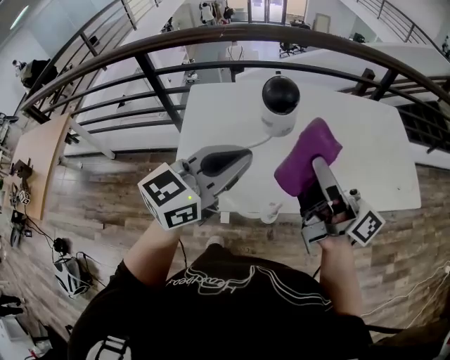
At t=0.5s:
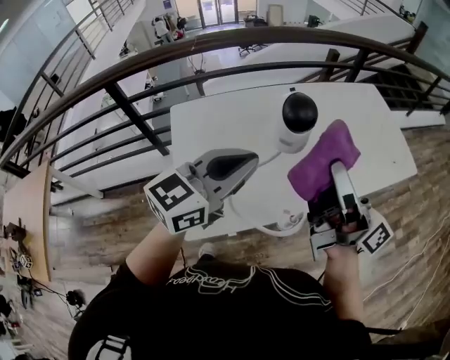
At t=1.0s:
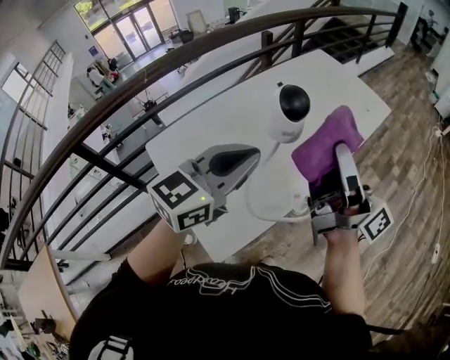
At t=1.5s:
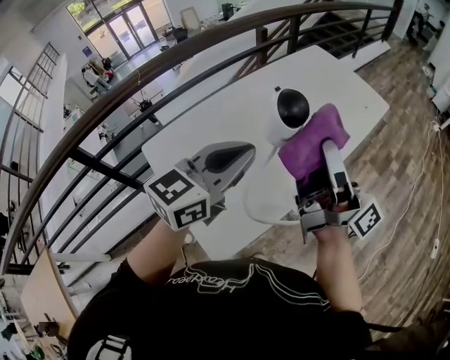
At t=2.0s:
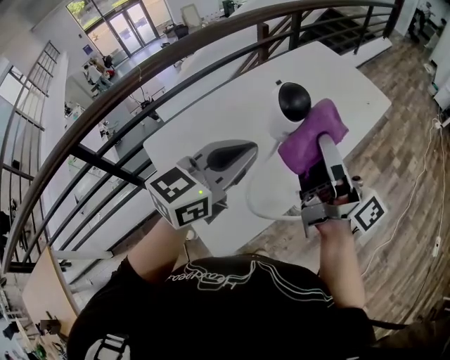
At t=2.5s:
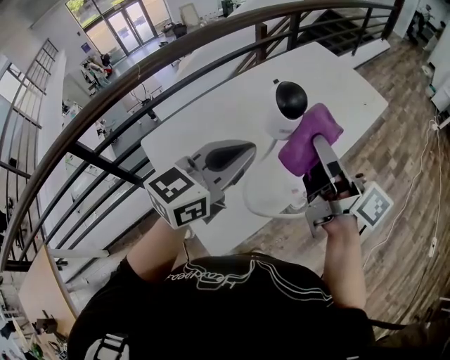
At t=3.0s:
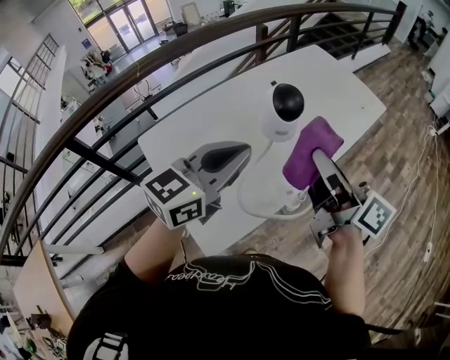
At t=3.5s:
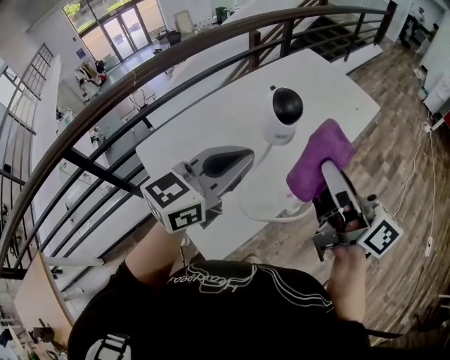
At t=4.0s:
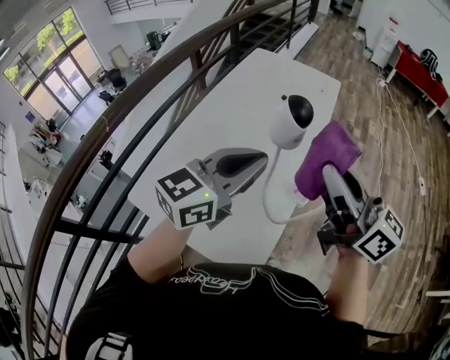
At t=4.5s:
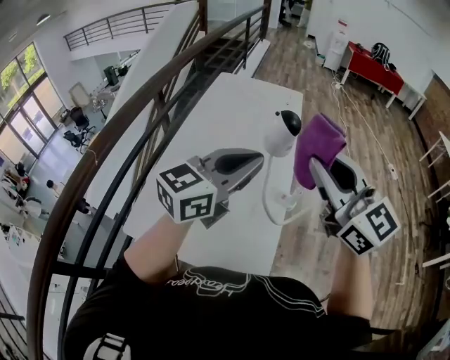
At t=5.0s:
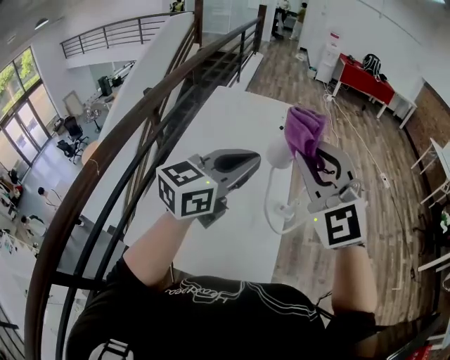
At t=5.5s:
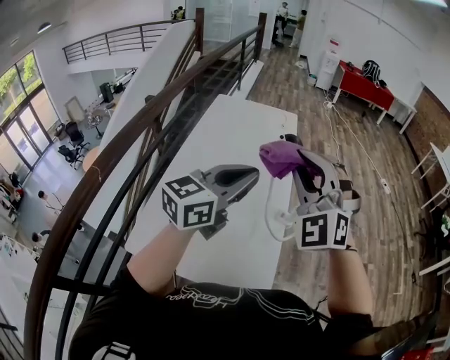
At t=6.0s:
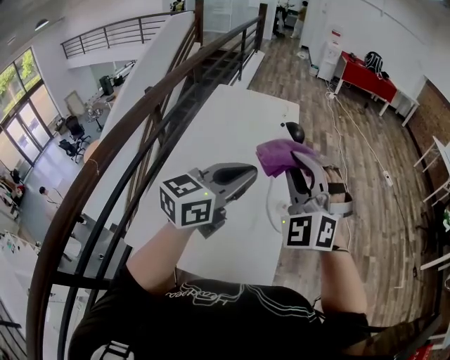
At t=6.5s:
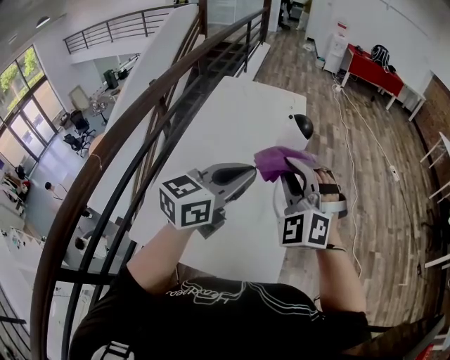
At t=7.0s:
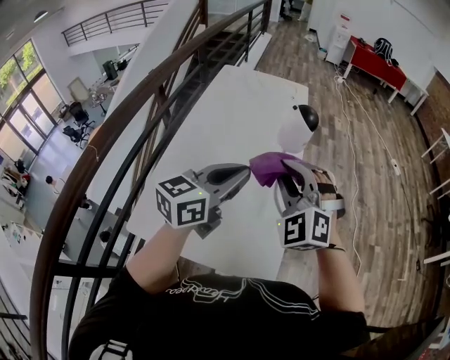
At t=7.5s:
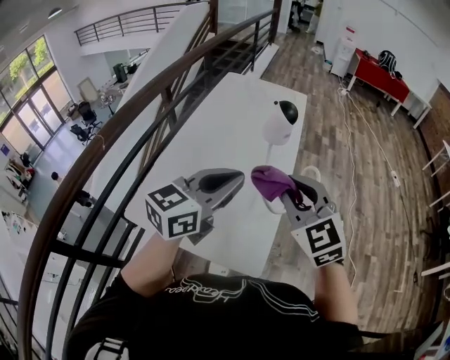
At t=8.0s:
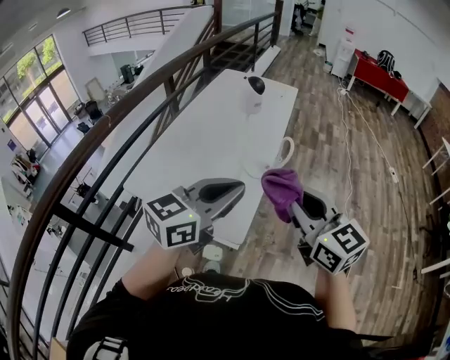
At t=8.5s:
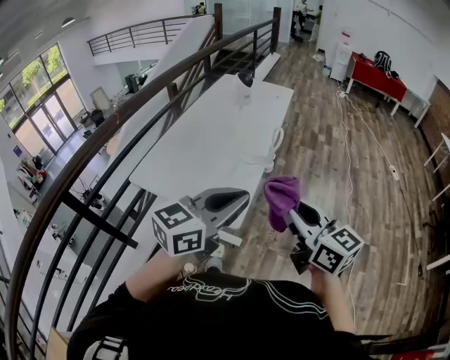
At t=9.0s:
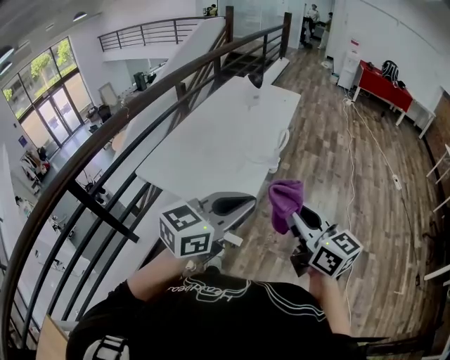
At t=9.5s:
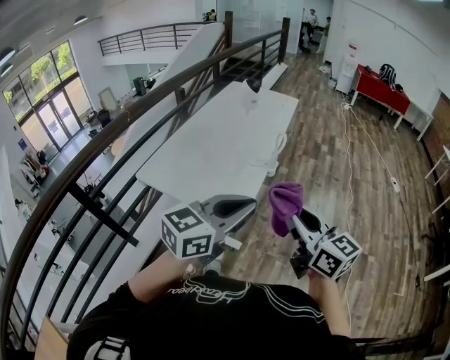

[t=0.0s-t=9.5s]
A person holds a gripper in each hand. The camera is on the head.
t=0.0s to t=2.0s: The left gripper shifts by roughly 10 cm, and rotates approximately 40 degrees, while the right gripper shifts by some 5 cm, and turns by approximately 50 degrees.
t=2.0s to t=4.0s: The right gripper changes place by about 10 cm, and twists approximately 40 degrees counterclockwise, seen from behind. The left gripper turns by about 30 degrees.
t=4.0s to t=5.5s: The left gripper travels to the left by roughly 5 cm. Meanwhile the right gripper heads to the left, covering approximately 10 cm, and rolls counterclockwise, seen from behind, by about 90 degrees.
t=5.5s to t=7.5s: The left gripper travels backward by some 5 cm; the right gripper heads downward, backward and to the right, covering about 15 cm, and swivels roughly 40 degrees.
t=7.5s to t=9.5s: The grippers both shift backward and to the right by some 35 cm. The right gripper twists roughly 40 degrees clockwise, seen from behind.

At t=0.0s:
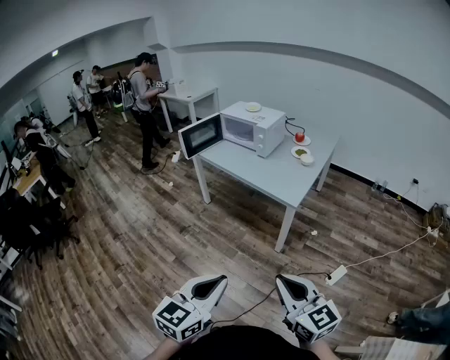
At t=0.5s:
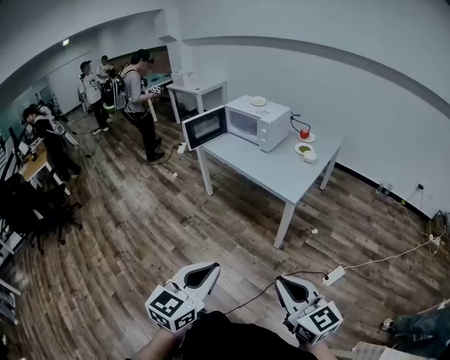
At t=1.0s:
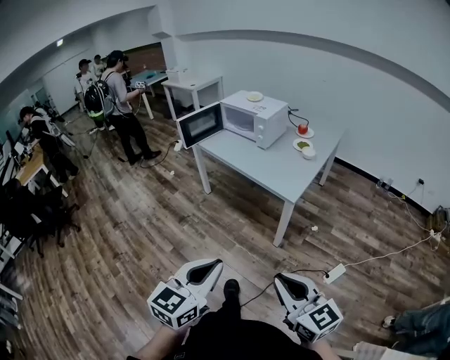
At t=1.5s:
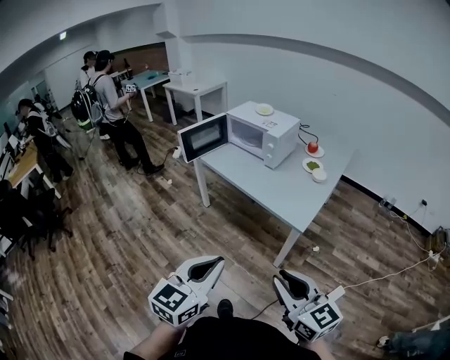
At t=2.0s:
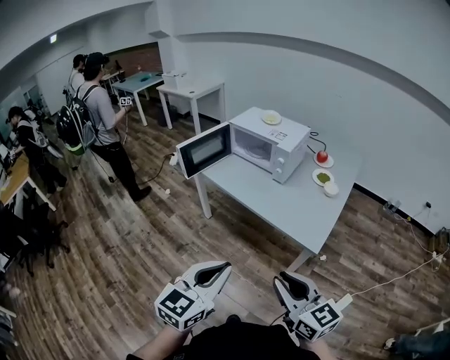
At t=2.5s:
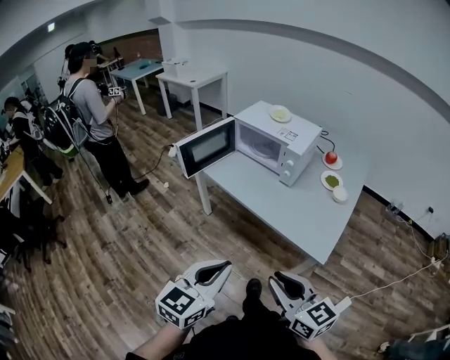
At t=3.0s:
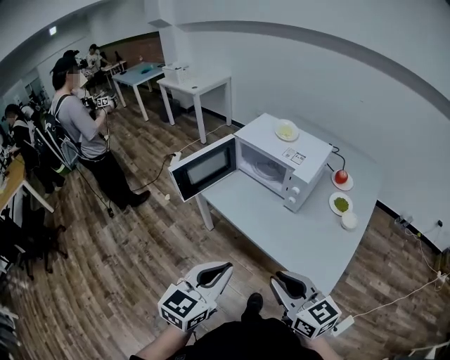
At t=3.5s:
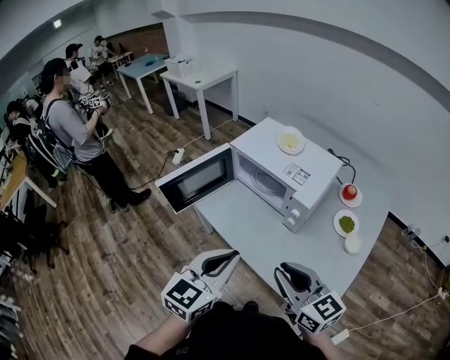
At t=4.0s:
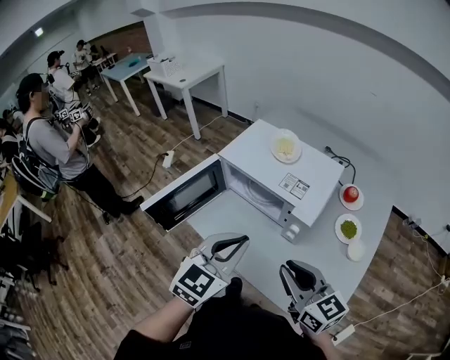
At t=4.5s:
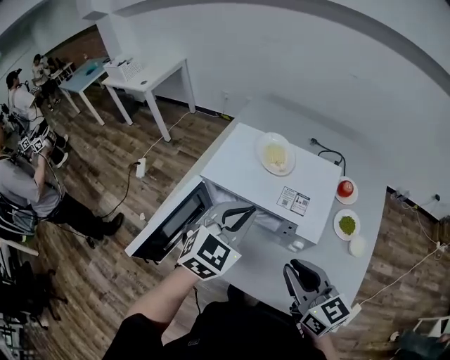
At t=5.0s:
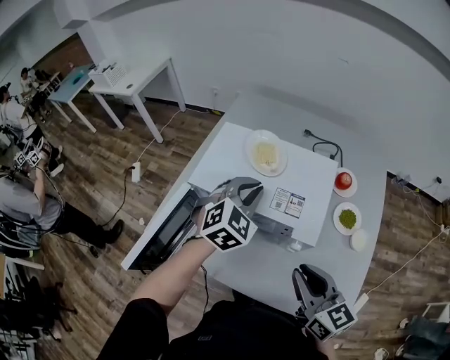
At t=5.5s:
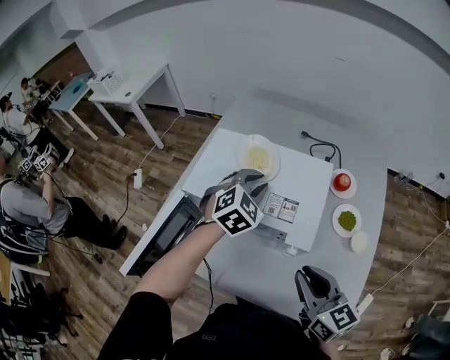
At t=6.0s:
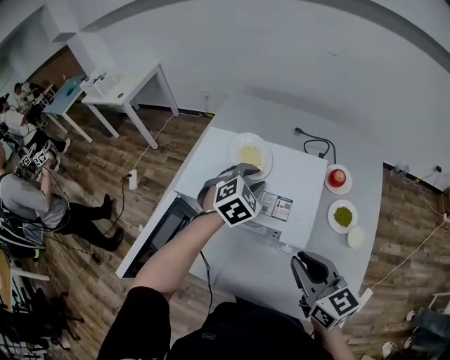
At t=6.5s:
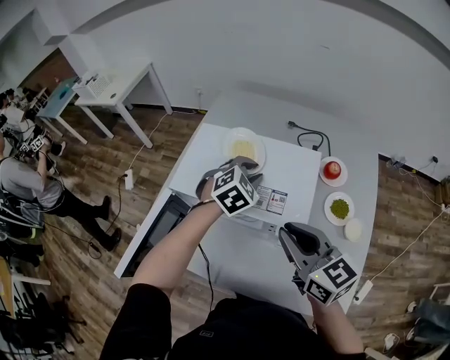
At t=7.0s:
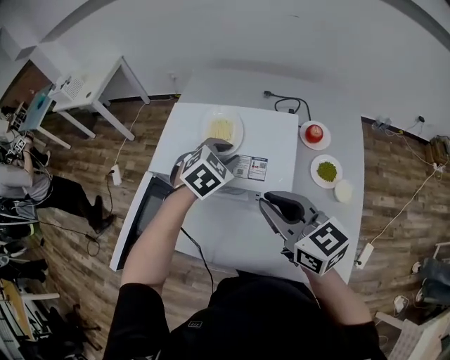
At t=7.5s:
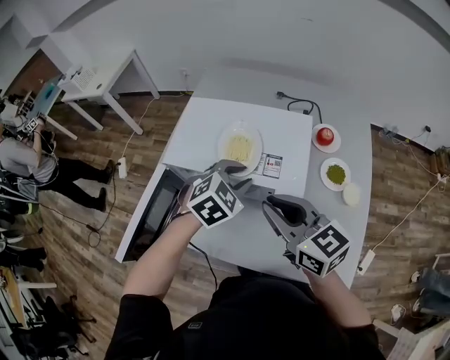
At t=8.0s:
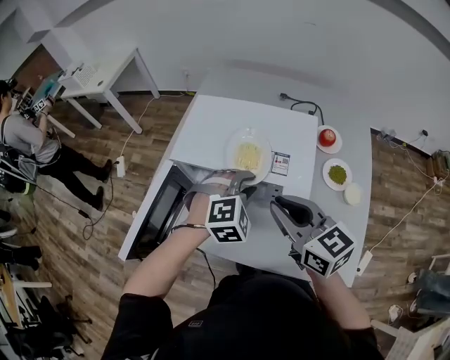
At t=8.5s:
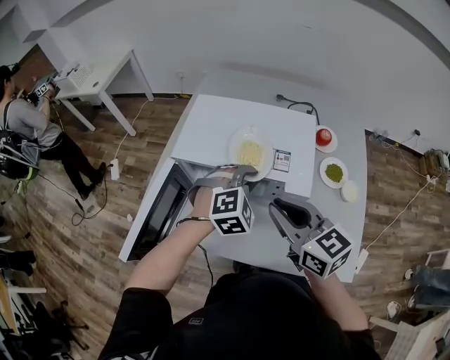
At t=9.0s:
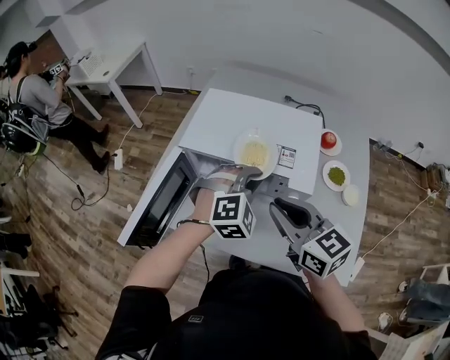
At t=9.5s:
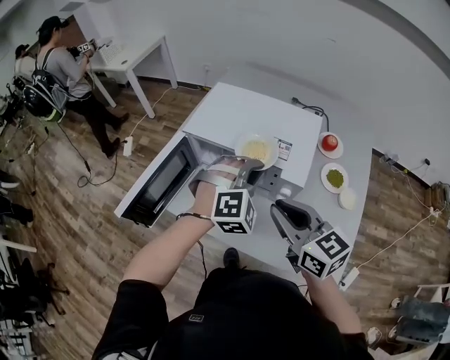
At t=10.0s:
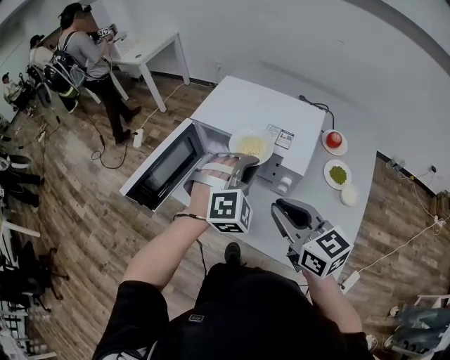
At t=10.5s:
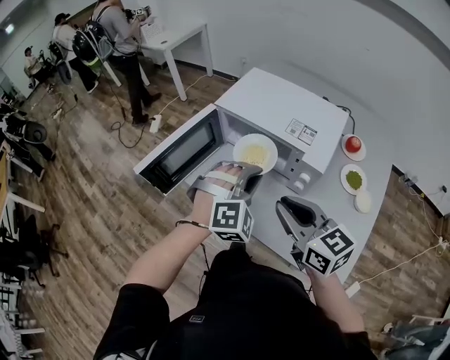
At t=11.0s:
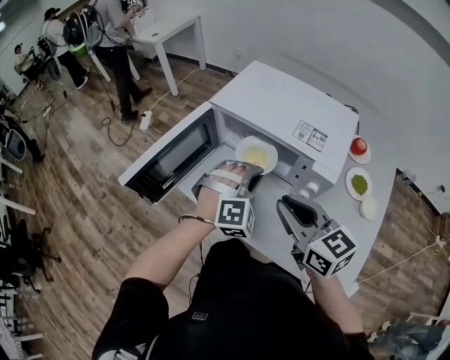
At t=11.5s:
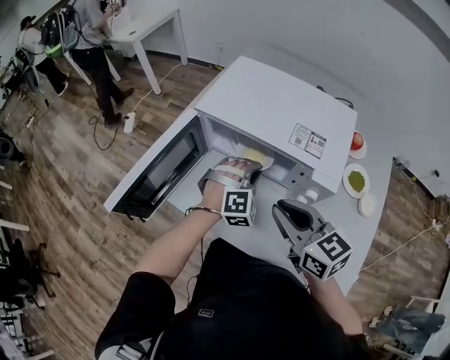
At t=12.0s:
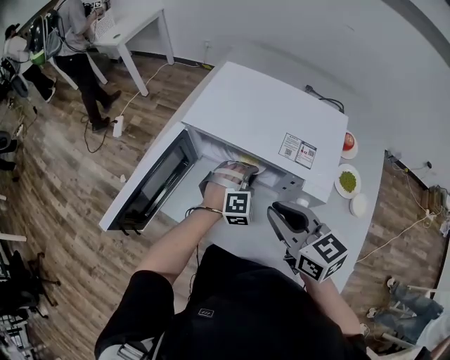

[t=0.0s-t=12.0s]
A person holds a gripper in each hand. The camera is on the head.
t=0.0s to t=2.0s: The two grippers go some 30 cm forward.
t=2.0s to t=4.0s: The two grippers travel together, forward, about 50 cm.
t=4.0s to t=6.0s: The right gripper travels forward by approximately 15 cm. Meanwhile the left gripper moves forward, some 30 cm, changes its angle by roughly 40 degrees, and opens.
t=6.0s to t=8.0s: The left gripper travels backward by about 15 cm, and changes its angle by some 20 degrees. The right gripper moves to the left, about 5 cm.
t=8.0s to t=10.0s: The left gripper is displaced backward and upward by roughly 10 cm, and turns by approximately 20 degrees. Meanwhile the right gripper shifts about 10 cm backward.
t=10.0s to t=12.0s: The left gripper goes approximately 25 cm downward and forward, while the right gripper goes about 15 cm forward and downward.

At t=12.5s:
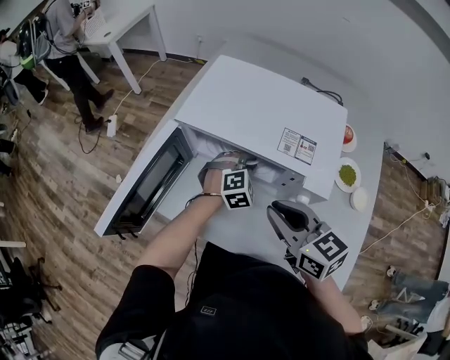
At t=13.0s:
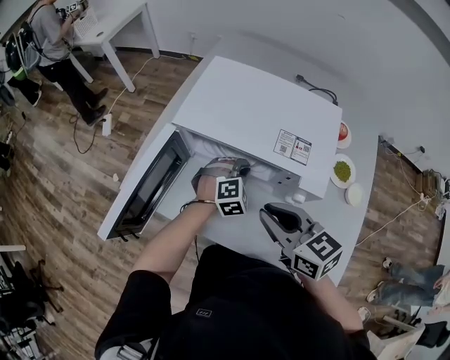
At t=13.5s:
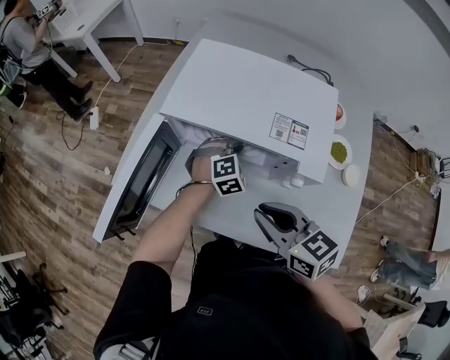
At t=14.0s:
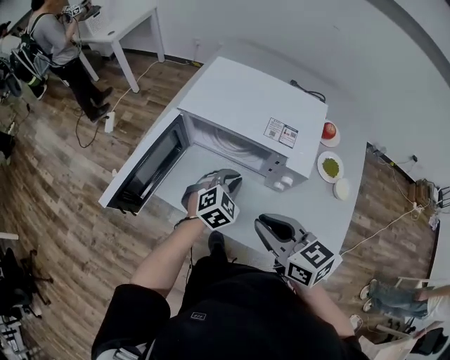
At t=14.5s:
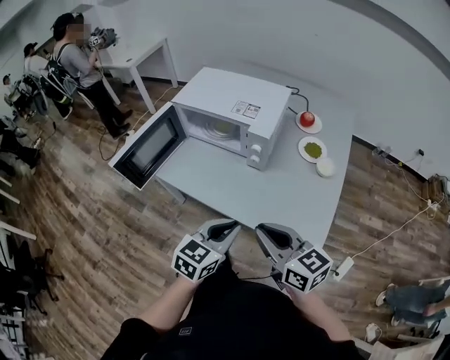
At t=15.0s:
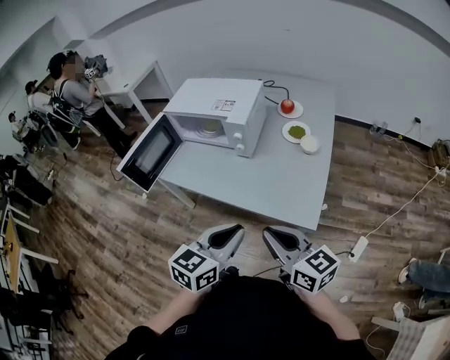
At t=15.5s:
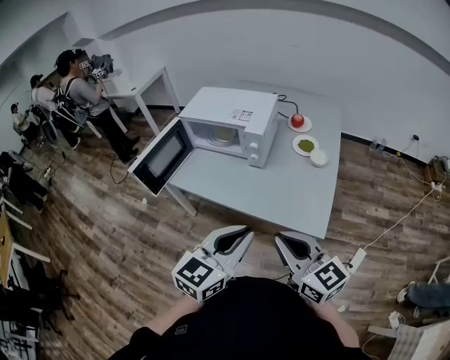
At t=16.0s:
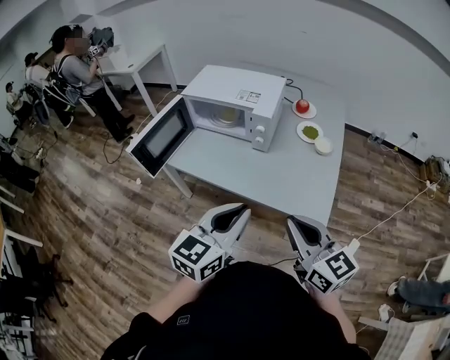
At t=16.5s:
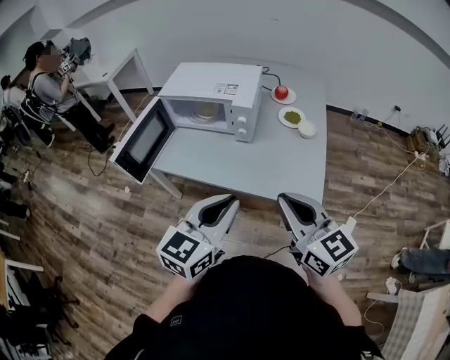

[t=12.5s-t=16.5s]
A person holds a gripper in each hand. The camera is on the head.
t=12.5s to t=14.5s: Both grippers move backward, approximately 35 cm. The left gripper twists roughly 50 degrees counterclockwise, seen from behind.
t=14.5s to t=16.5s: The left gripper is displaced upward and backward by about 15 cm; the right gripper heads backward and upward, covering approximately 15 cm, and rotates about 20 degrees.

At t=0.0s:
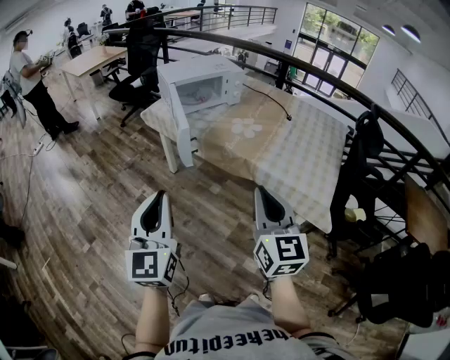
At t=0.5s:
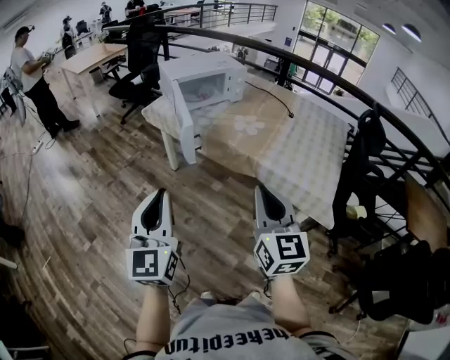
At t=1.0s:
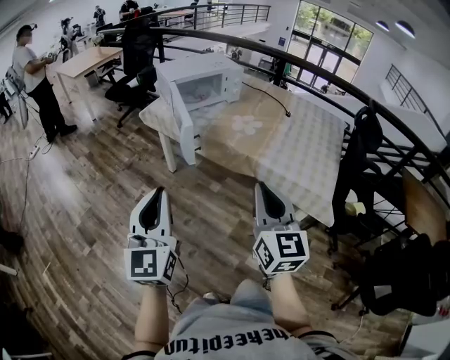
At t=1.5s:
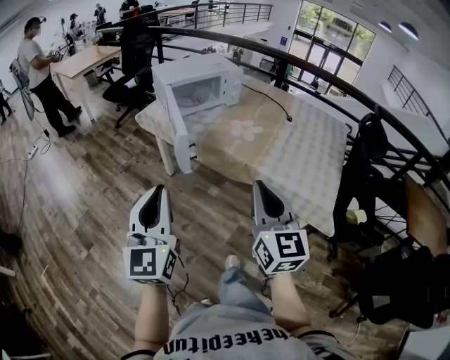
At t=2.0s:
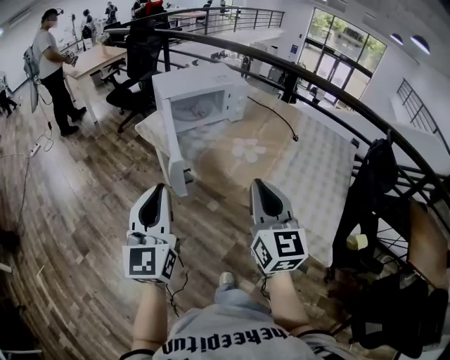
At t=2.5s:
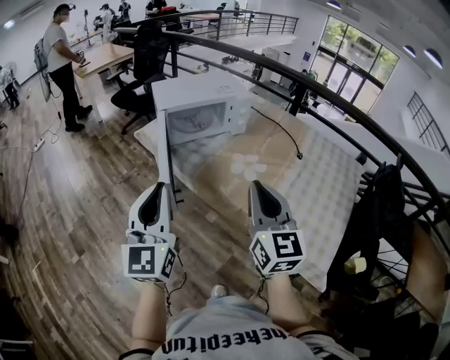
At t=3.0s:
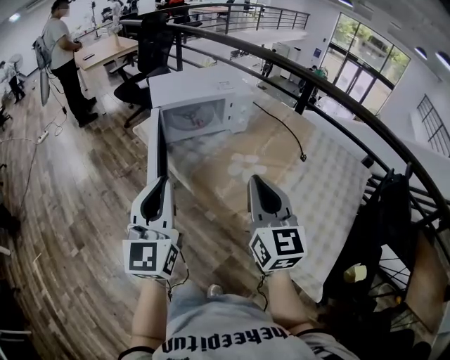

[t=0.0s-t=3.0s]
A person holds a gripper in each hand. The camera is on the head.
t=0.0s to t=1.5s: Both grippers travel together forward, some 5 cm.
t=1.5s to t=3.0s: The left gripper is displaced forward and to the right by roughly 25 cm; the right gripper travels forward by approximately 25 cm.
